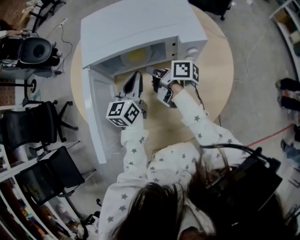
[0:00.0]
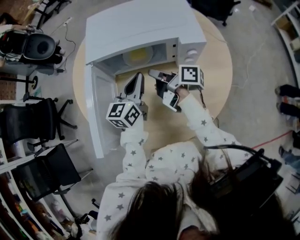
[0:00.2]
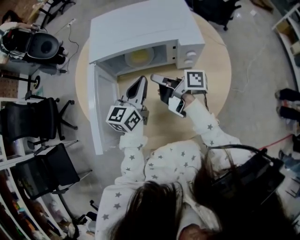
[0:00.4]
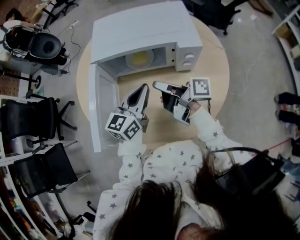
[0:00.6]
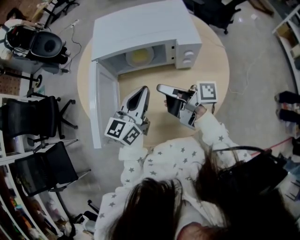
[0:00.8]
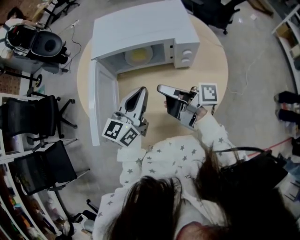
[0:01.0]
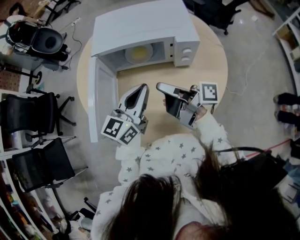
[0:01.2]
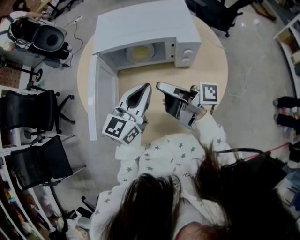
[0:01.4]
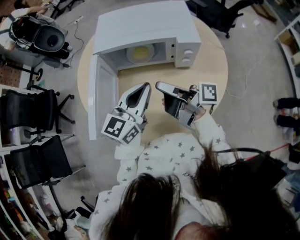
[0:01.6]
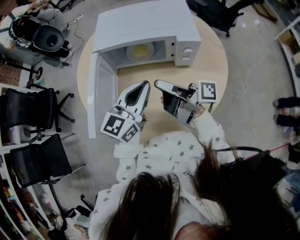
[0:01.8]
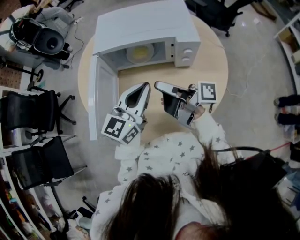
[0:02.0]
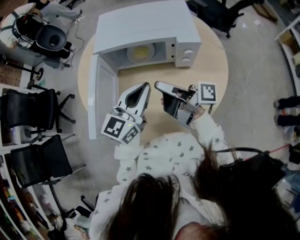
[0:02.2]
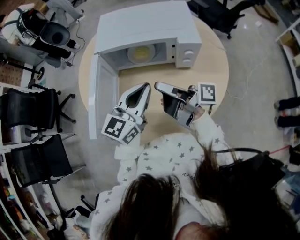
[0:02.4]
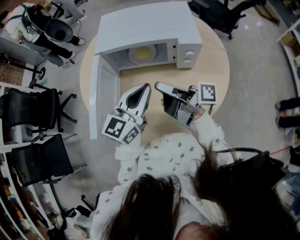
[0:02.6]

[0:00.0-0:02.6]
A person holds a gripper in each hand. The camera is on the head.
0:00.0 to 0:01.2: The left gripper shifts by roughly 20 cm.

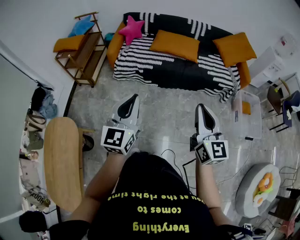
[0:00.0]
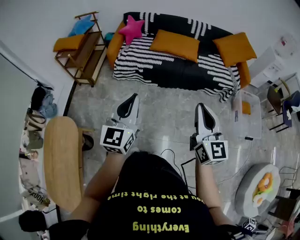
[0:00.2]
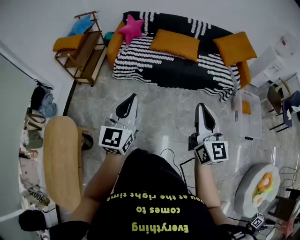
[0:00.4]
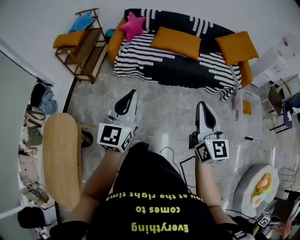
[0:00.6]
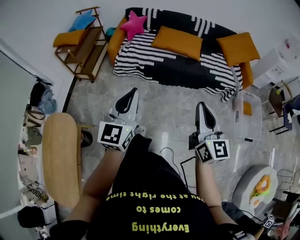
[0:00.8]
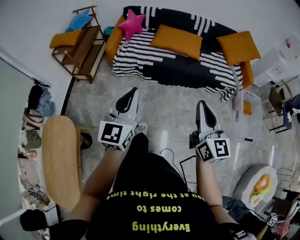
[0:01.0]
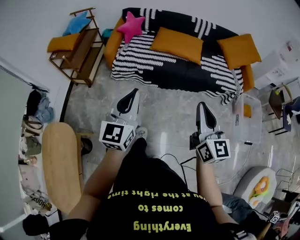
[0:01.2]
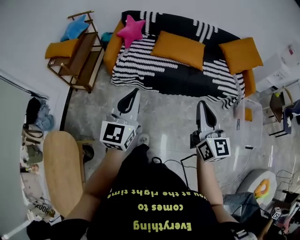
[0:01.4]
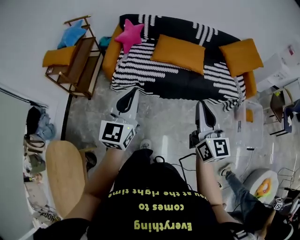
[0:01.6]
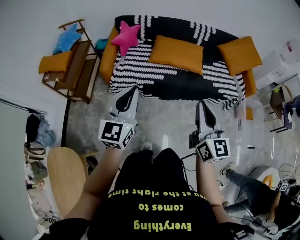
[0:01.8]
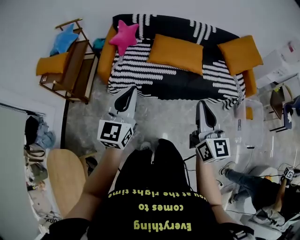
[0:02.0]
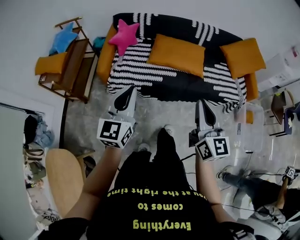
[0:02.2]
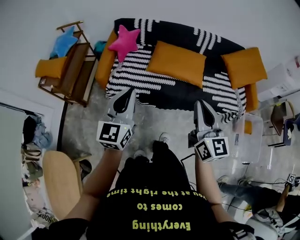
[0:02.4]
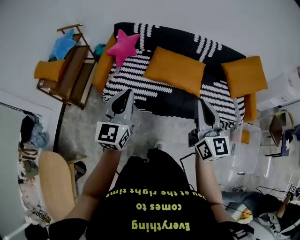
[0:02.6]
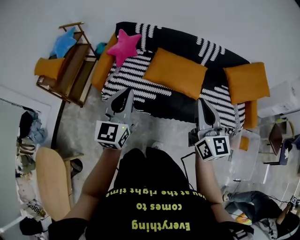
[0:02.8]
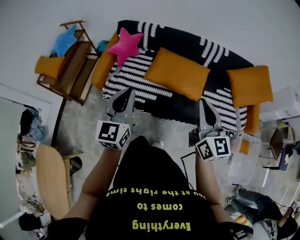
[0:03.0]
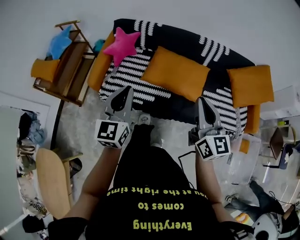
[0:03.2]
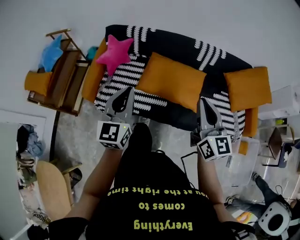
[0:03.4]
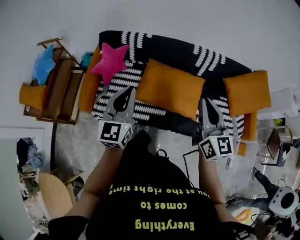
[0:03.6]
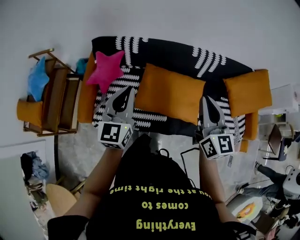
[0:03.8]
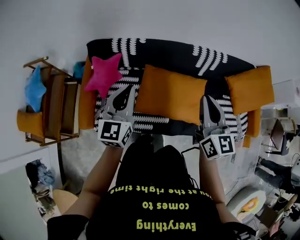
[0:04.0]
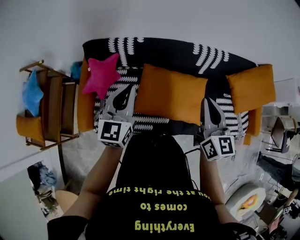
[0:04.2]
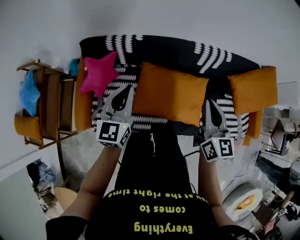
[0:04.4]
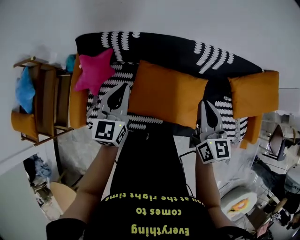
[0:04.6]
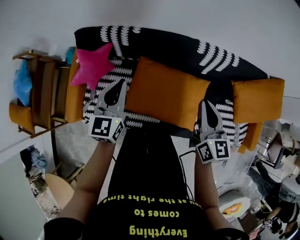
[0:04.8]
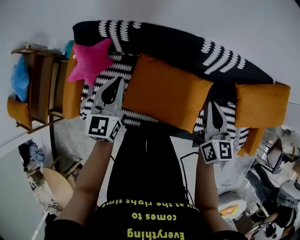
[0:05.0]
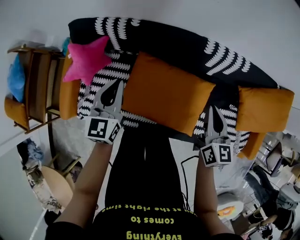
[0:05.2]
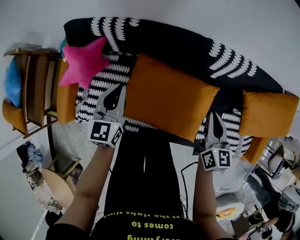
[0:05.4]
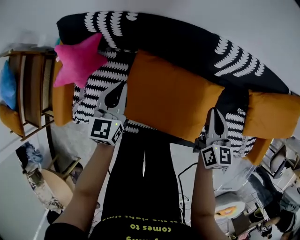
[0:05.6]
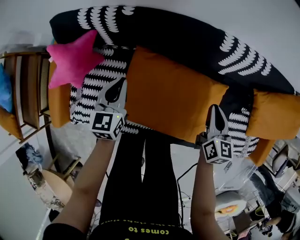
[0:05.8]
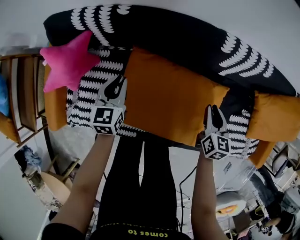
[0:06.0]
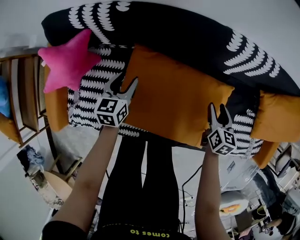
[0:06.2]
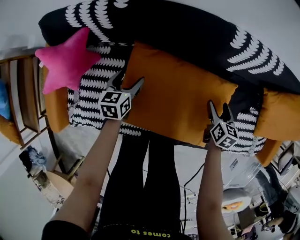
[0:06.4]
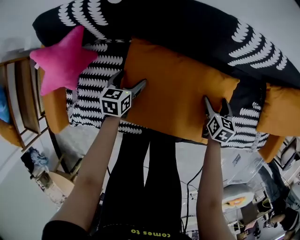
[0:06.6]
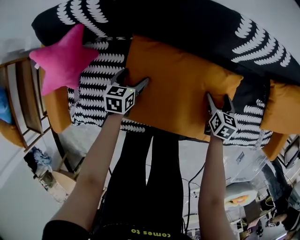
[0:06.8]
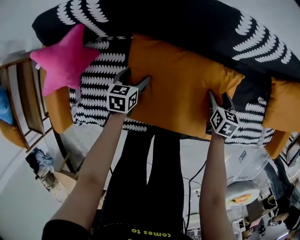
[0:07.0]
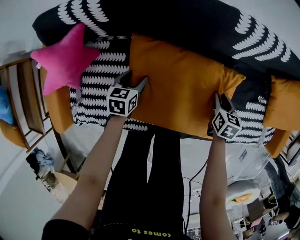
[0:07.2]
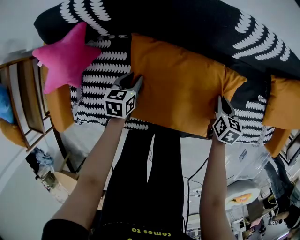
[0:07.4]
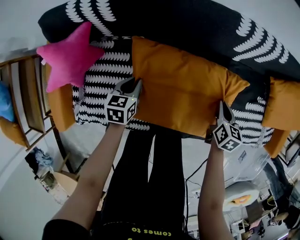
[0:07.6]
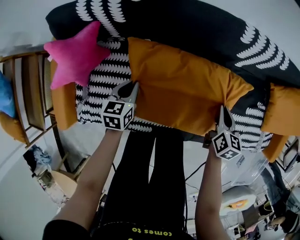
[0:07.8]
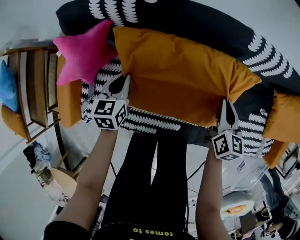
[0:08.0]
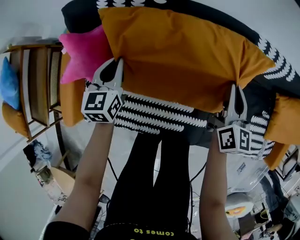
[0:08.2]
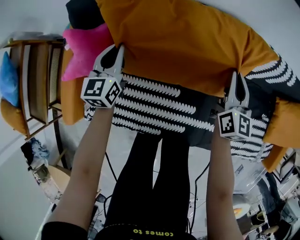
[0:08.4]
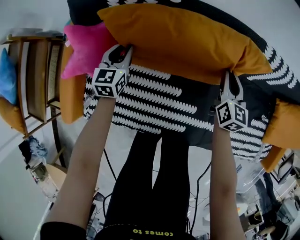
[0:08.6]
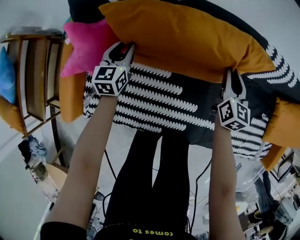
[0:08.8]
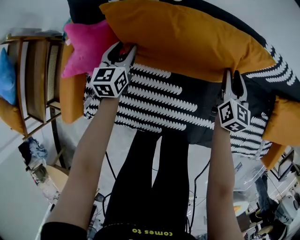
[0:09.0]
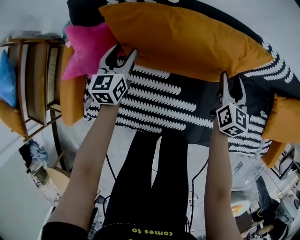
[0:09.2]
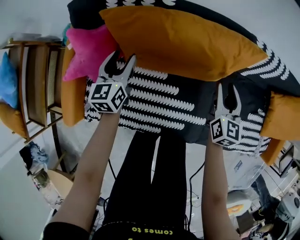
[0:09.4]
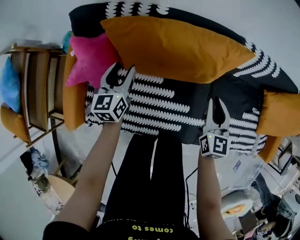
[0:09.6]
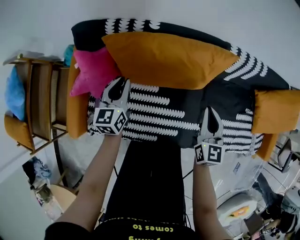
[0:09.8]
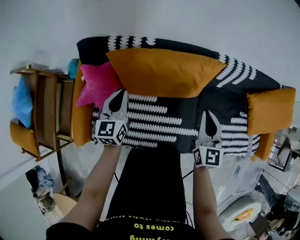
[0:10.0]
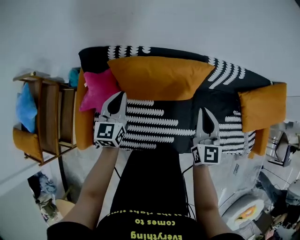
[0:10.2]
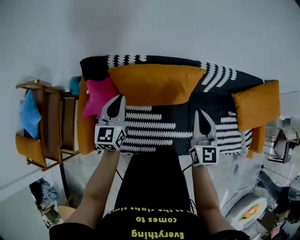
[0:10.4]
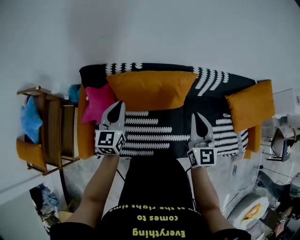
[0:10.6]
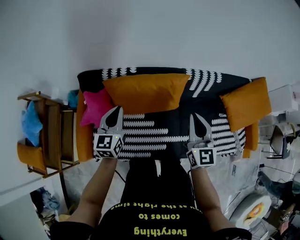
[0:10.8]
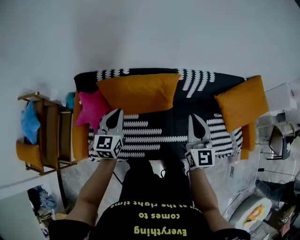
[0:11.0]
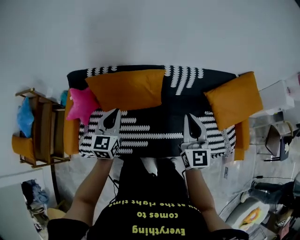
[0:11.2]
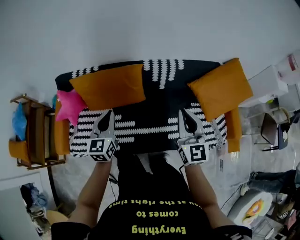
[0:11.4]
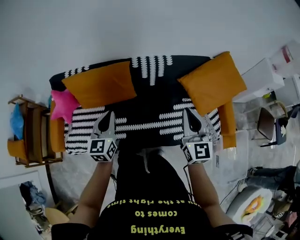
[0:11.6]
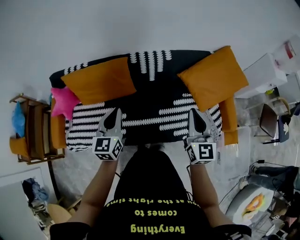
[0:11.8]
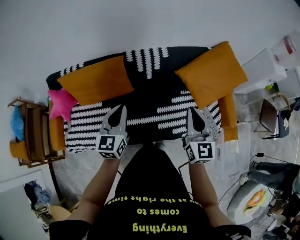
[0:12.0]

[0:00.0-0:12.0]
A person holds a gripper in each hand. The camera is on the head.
0:00.0 to 0:01.6: The two grippers go roughly 25 cm forward.
0:01.6 to 0:03.0: The right gripper travels forward by some 30 cm; the left gripper is displaced forward and to the right by approximately 30 cm.
0:03.0 to 0:04.4: The two grippers go approximately 40 cm forward. The right gripper turns by some 20 degrees.
0:04.4 to 0:06.0: The grippers both shift downward by about 35 cm. The left gripper rotates about 20 degrees. The right gripper rotates roughly 30 degrees.
0:06.0 to 0:07.6: The right gripper heads downward, covering approximately 5 cm, and opens, then closes once more; the left gripper heads downward, covering some 10 cm, swivels some 20 degrees, and opens and closes again.
0:07.6 to 0:09.0: The grippers both shift to the left, forward and upward by roughly 20 cm. The right gripper swivels roughly 30 degrees, while the left gripper changes its angle by about 30 degrees, and opens.
0:09.0 to 0:10.4: The right gripper shifts roughly 35 cm upward and backward. The left gripper heads upward, covering about 30 cm, and closes its fingers.
0:10.4 to 0:12.0: The two grippers travel together, to the right, approximately 50 cm.

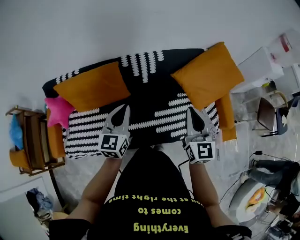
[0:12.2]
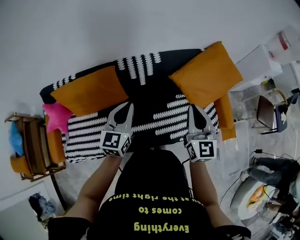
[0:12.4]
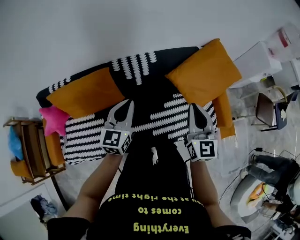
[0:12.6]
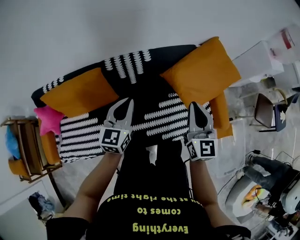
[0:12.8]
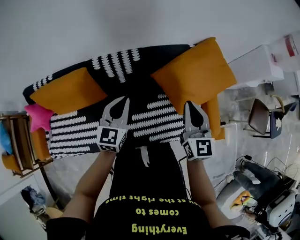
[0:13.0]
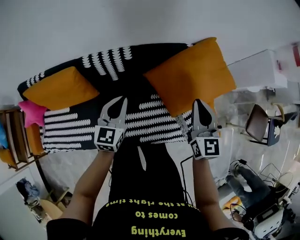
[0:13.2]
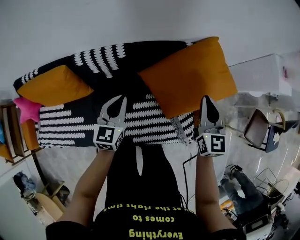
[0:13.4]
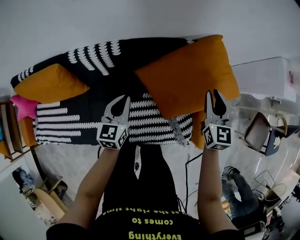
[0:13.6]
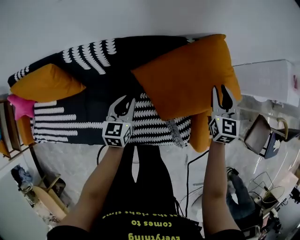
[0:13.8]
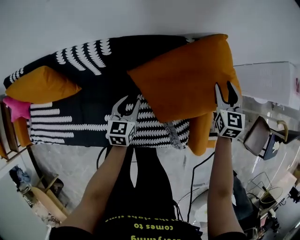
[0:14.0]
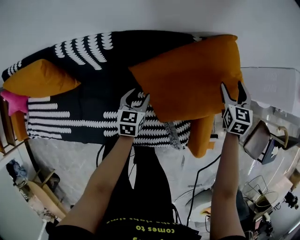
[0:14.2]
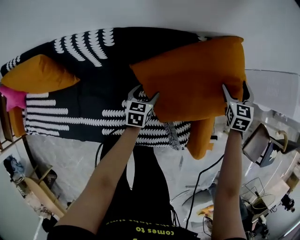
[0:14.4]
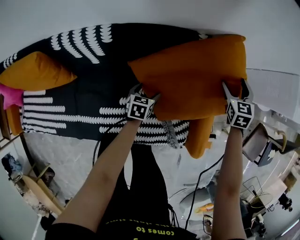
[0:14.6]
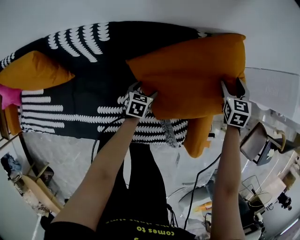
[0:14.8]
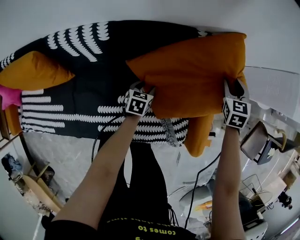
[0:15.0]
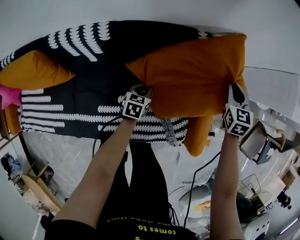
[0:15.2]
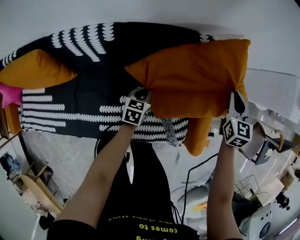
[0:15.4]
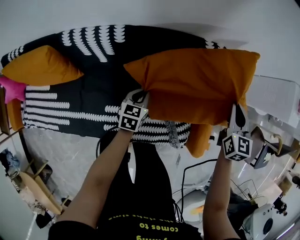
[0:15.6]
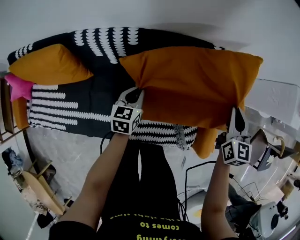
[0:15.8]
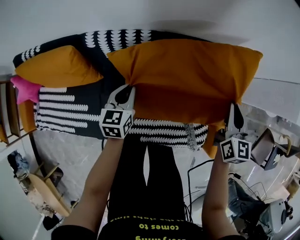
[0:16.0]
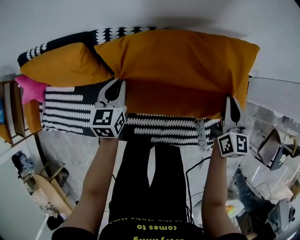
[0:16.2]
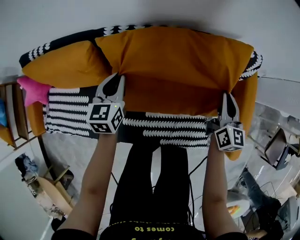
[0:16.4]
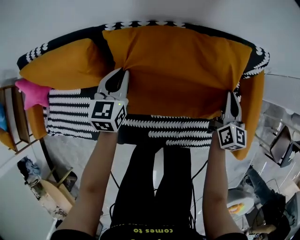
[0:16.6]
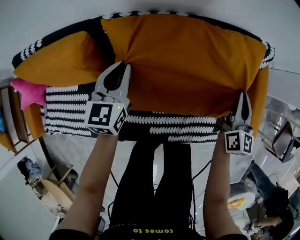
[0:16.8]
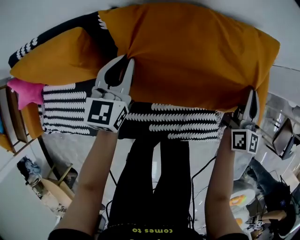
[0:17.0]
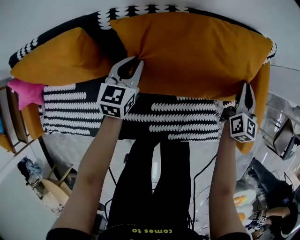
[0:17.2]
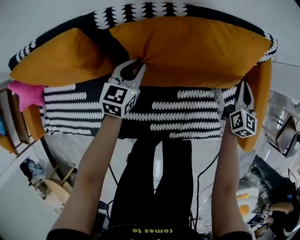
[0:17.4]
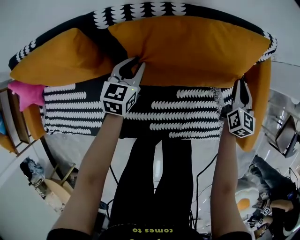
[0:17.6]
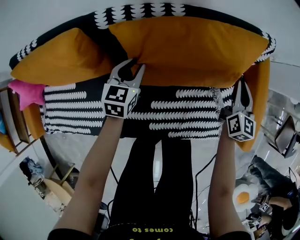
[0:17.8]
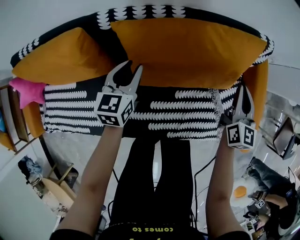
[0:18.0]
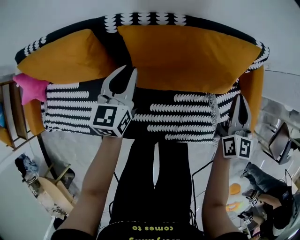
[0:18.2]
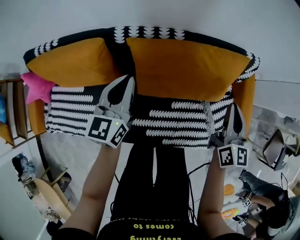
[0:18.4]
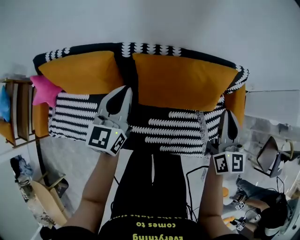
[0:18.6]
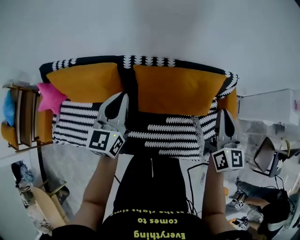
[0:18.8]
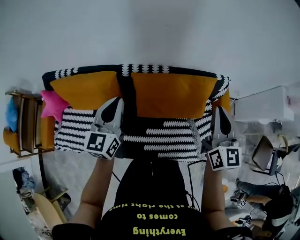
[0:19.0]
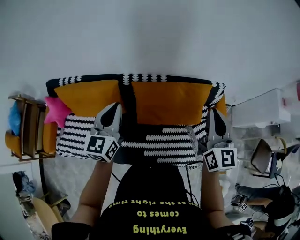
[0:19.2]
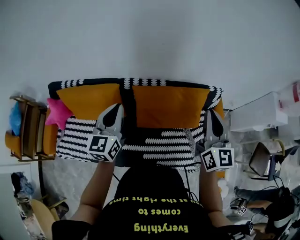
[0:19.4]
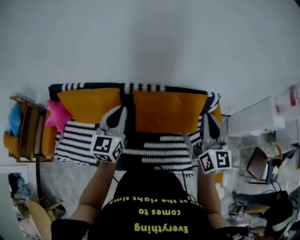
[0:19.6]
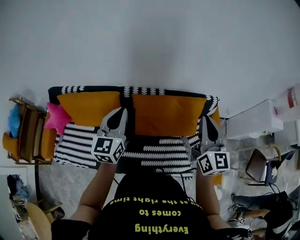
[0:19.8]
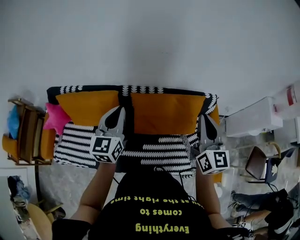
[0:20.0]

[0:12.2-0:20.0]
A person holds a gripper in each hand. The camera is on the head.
0:12.2 to 0:13.8: Both grippers move to the right, forward and downward, approximately 50 cm. The left gripper changes its angle by approximately 20 degrees. Meanwhile the right gripper changes its angle by approximately 20 degrees.
0:13.8 to 0:15.4: The left gripper is displaced downward and to the right by about 20 cm, and opens, then closes again. Meanwhile the right gripper is displaced downward by roughly 5 cm, and opens, then closes again.
0:15.4 to 0:16.8: The left gripper goes approximately 40 cm to the left and upward, and turns by about 30 degrees, while the right gripper is displaced to the left by roughly 25 cm, and turns by roughly 30 degrees.
0:16.8 to 0:18.4: Both grippers travel together upward, some 10 cm.
0:18.4 to 0:20.0: Both grippers move upward, approximately 25 cm.

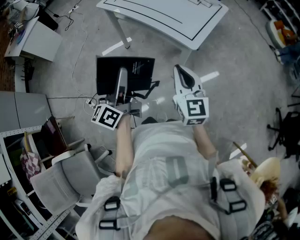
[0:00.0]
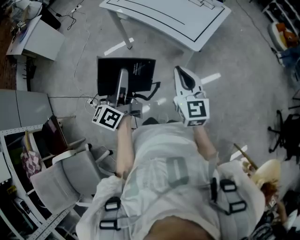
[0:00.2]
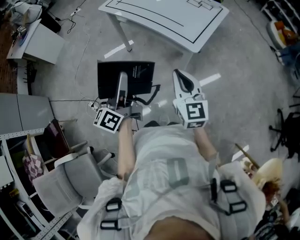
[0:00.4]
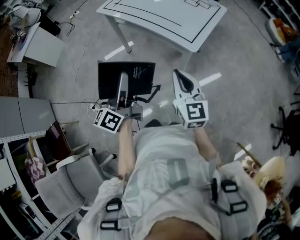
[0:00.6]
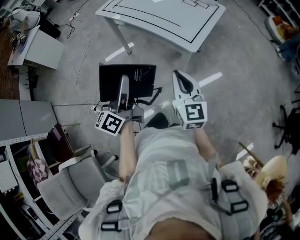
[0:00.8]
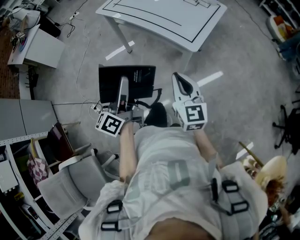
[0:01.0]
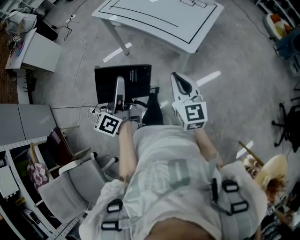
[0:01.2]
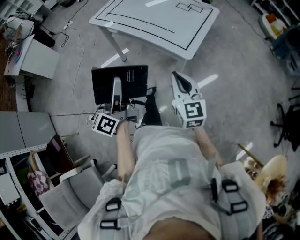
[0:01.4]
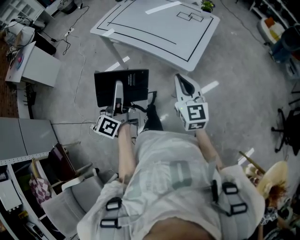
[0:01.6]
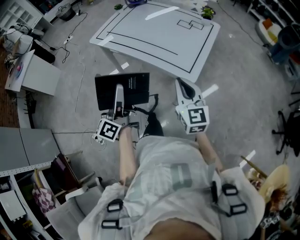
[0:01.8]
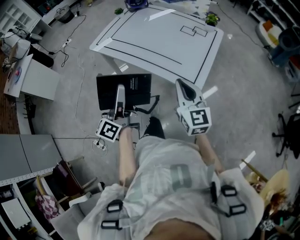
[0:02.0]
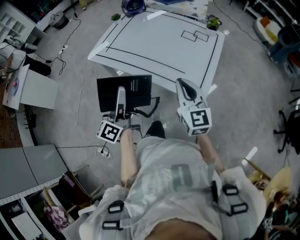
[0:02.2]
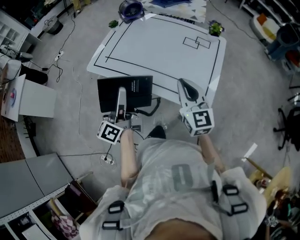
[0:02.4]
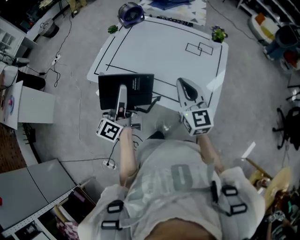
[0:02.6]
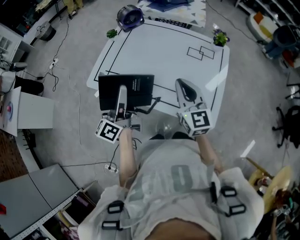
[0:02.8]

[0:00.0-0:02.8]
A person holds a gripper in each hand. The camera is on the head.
0:00.0 to 0:01.4: There are only small adjustments of the grippers.
0:01.4 to 0:02.8: The two grippers travel together, forward, some 40 cm.
